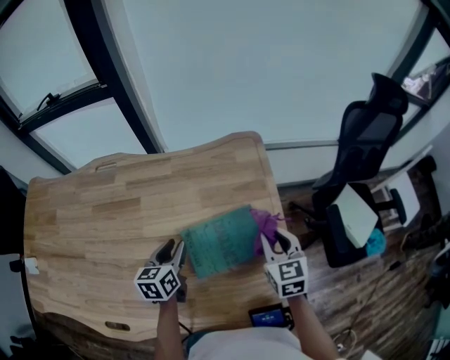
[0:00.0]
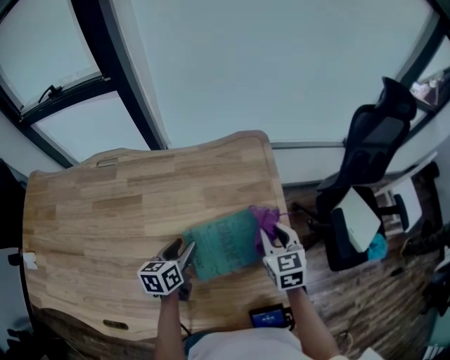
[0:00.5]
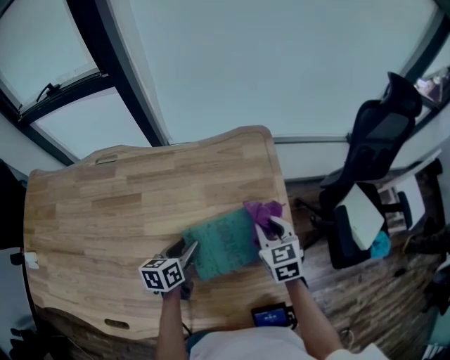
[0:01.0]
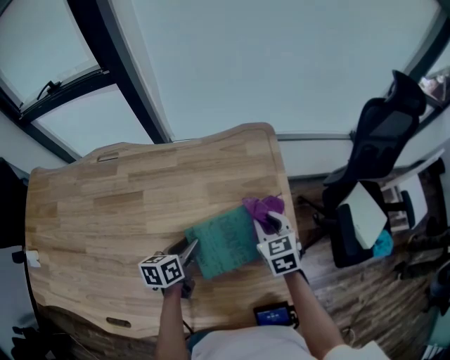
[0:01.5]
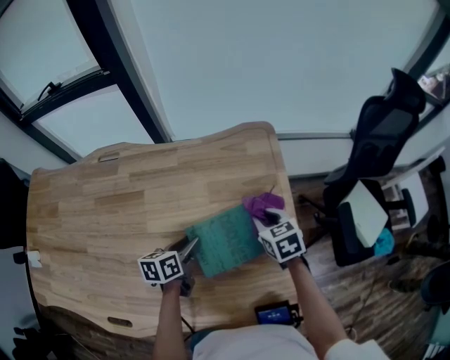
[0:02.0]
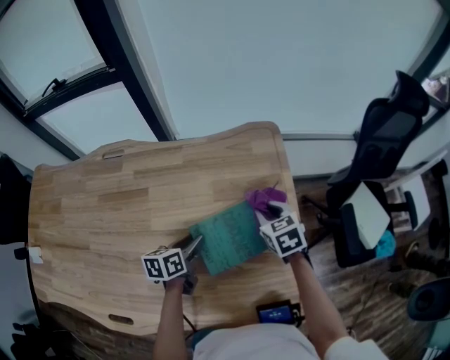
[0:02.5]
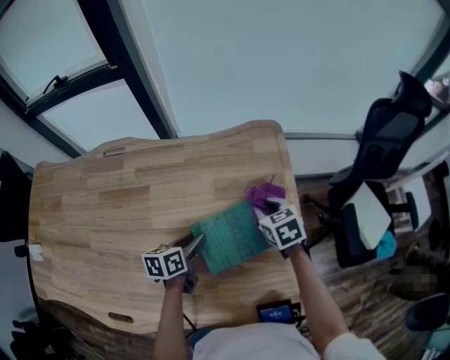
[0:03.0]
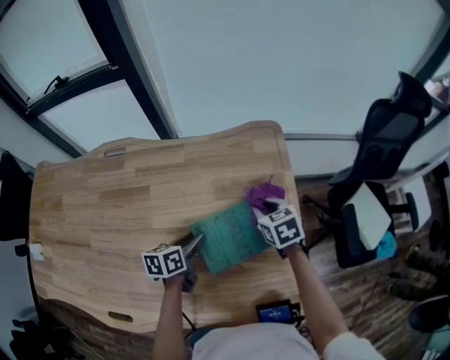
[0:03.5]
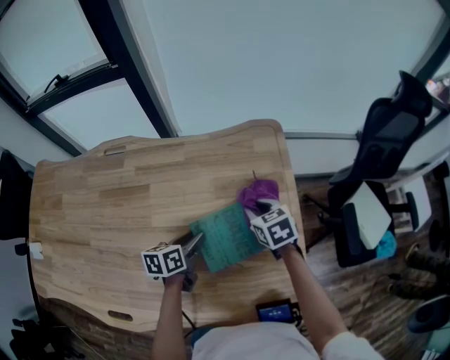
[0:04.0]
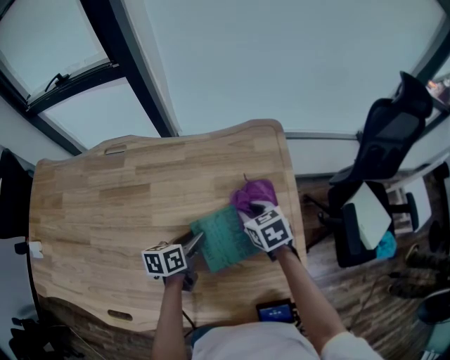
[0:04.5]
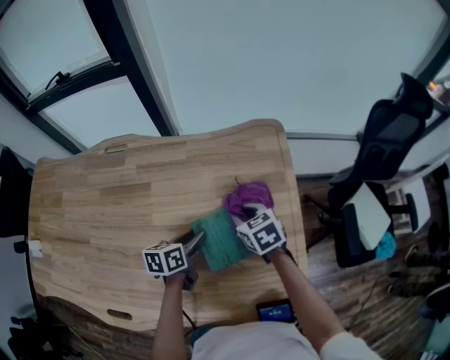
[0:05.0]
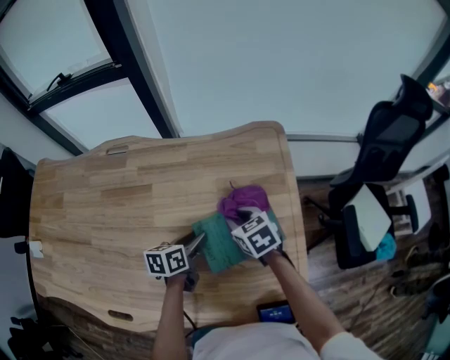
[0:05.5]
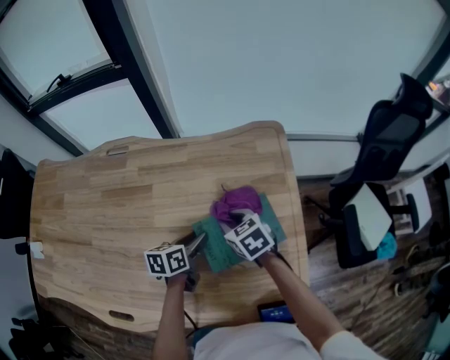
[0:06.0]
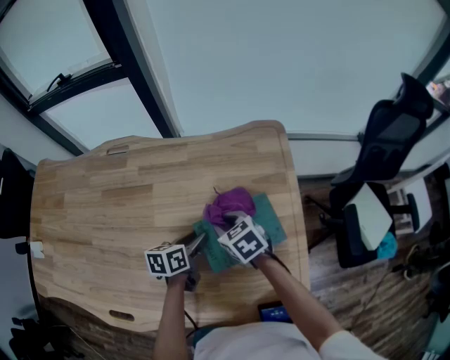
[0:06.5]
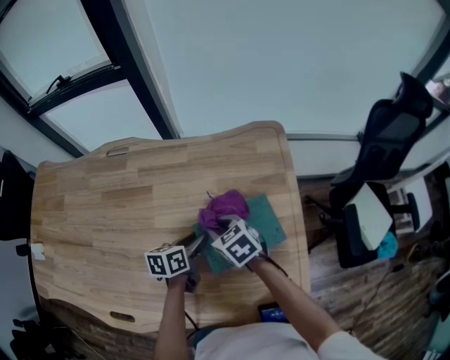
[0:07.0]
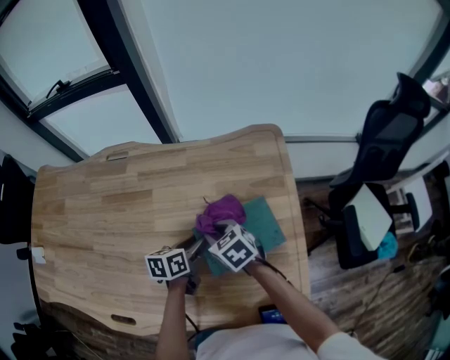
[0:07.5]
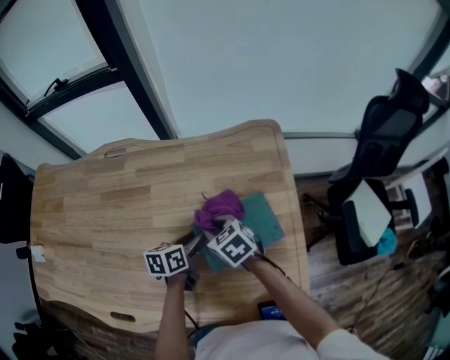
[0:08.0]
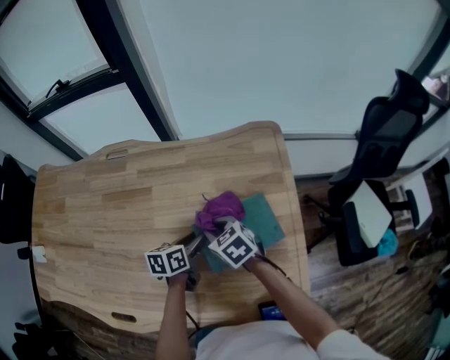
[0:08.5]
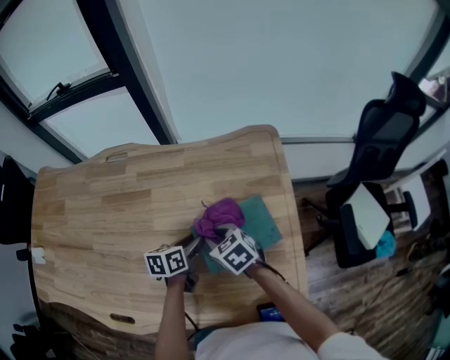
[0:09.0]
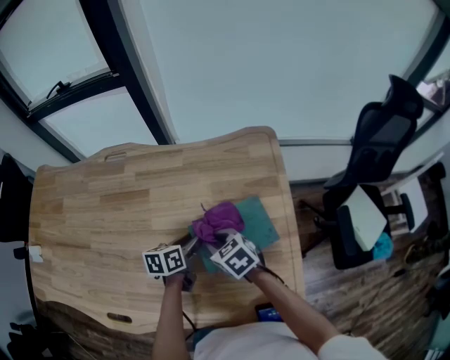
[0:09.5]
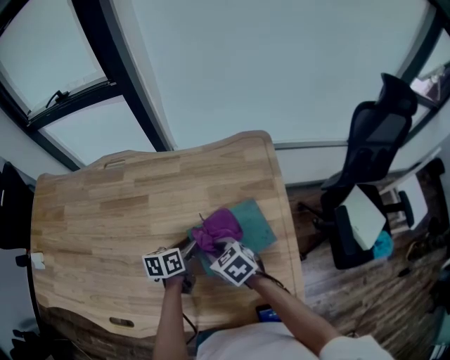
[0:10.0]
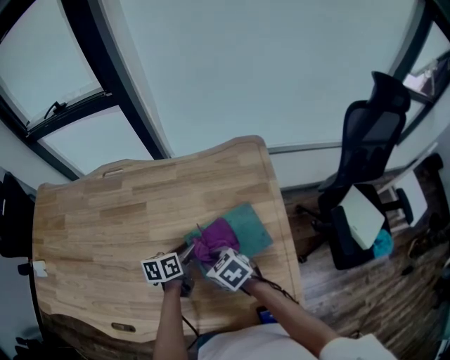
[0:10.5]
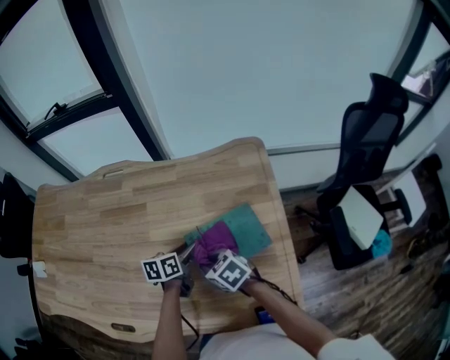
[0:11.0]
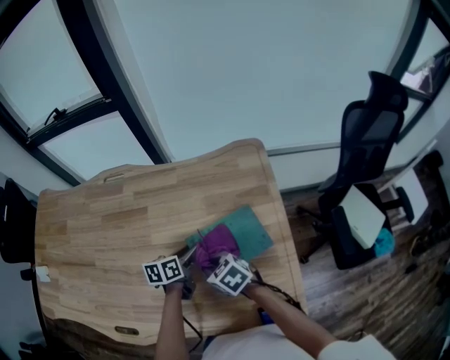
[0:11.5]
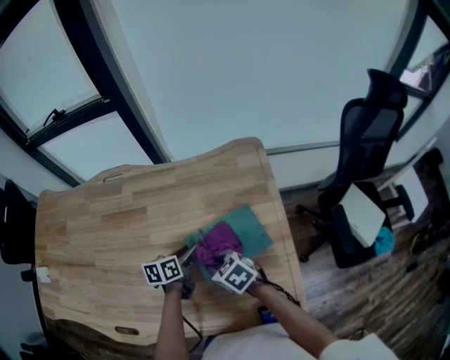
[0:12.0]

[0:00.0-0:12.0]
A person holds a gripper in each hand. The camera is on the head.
0:00.0 to 0:02.0: The left gripper shifts roughly 5 cm downward, and changes its angle by approximately 20 degrees, while the right gripper heads downward and forward, covering some 10 cm, and swivels about 20 degrees.
0:02.0 to 0:04.0: The grippers make only small movements.
0:04.0 to 0:06.0: The right gripper heads to the left, covering some 10 cm.
0:06.0 to 0:08.0: The right gripper ends up some 5 cm from where it was.
0:08.0 to 0:10.0: The right gripper is displaced backward by some 5 cm.
0:10.0 to 0:12.0: The grippers stay close to where they were, moving slightly.

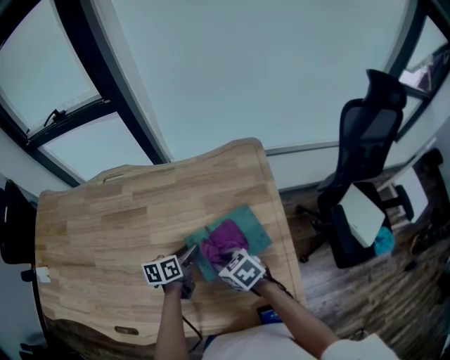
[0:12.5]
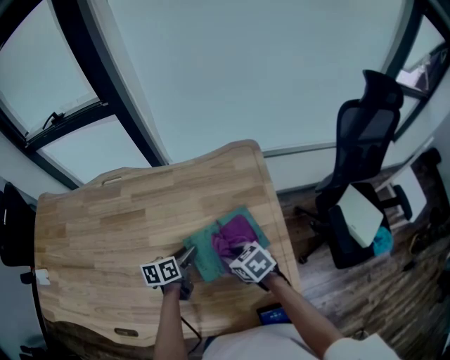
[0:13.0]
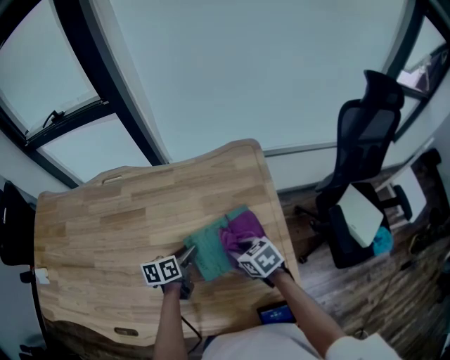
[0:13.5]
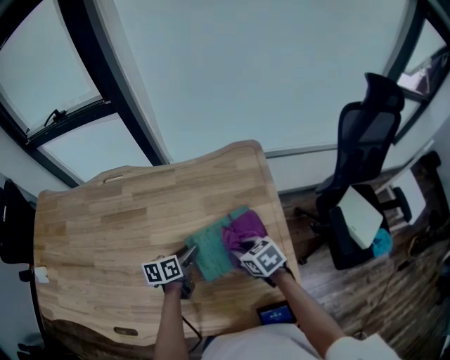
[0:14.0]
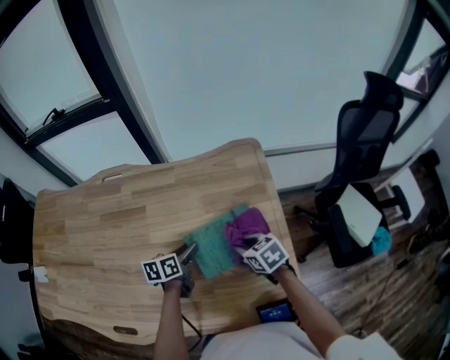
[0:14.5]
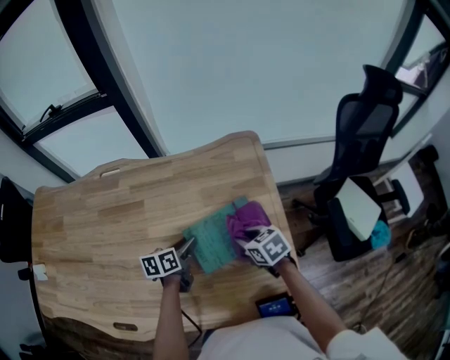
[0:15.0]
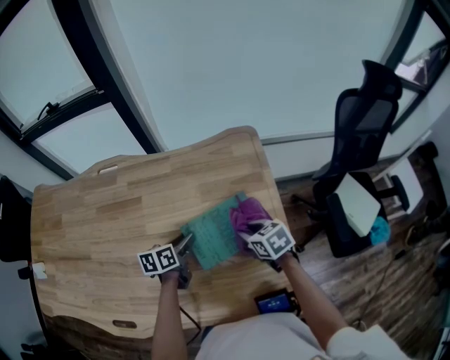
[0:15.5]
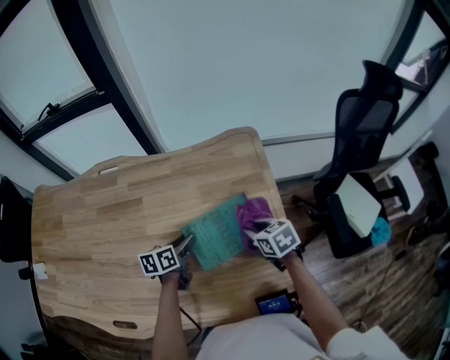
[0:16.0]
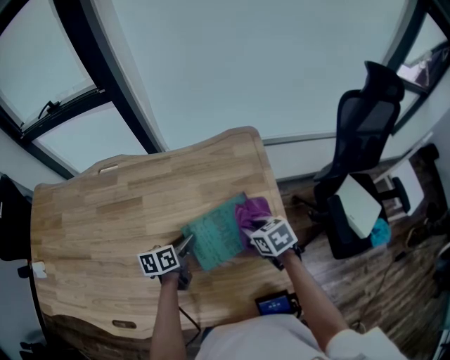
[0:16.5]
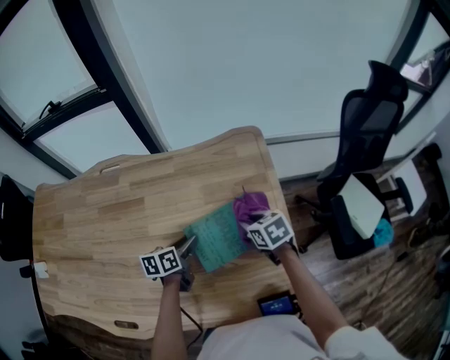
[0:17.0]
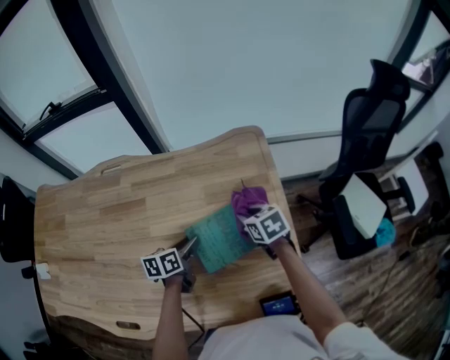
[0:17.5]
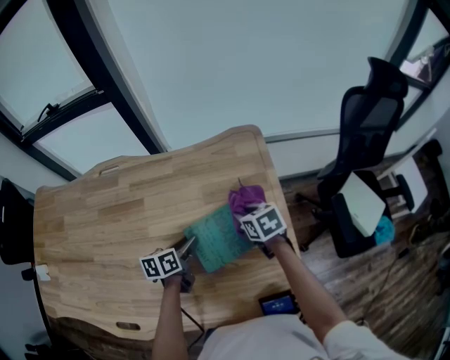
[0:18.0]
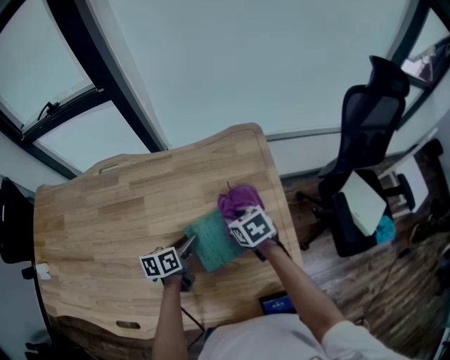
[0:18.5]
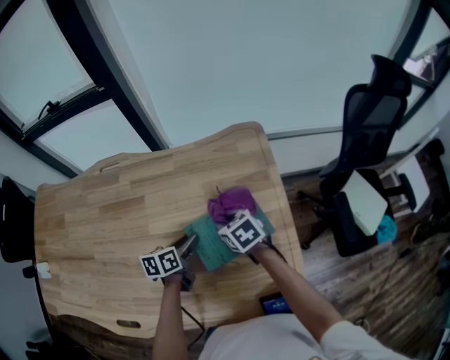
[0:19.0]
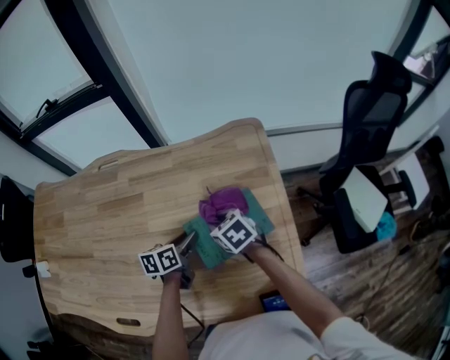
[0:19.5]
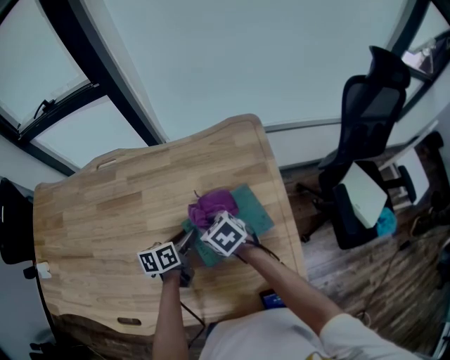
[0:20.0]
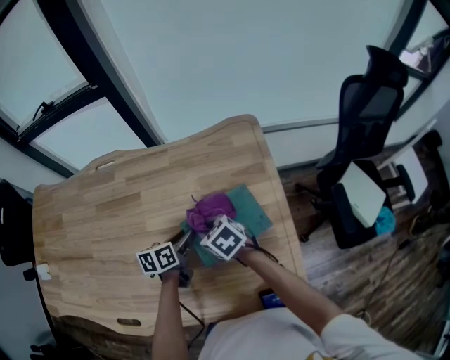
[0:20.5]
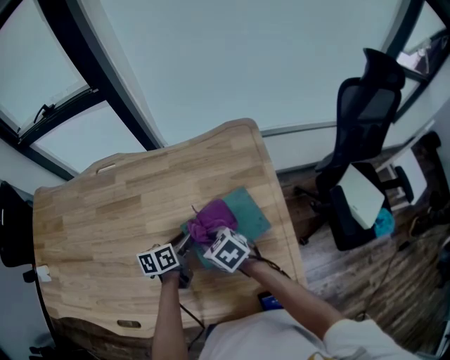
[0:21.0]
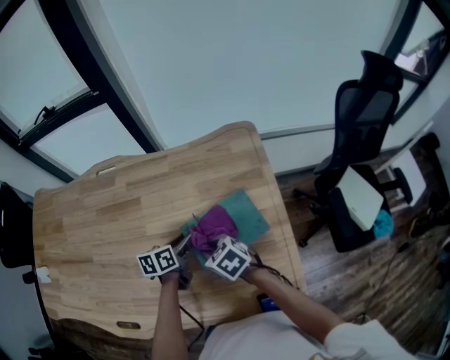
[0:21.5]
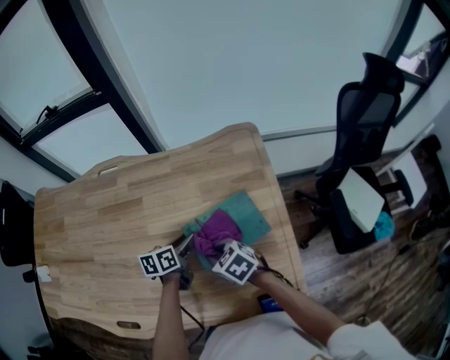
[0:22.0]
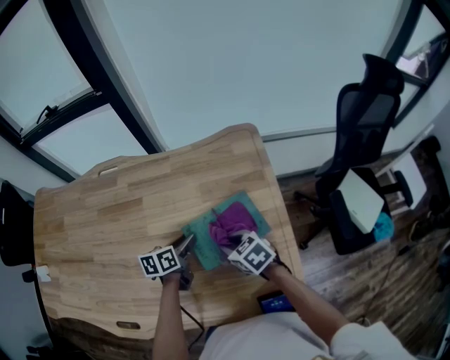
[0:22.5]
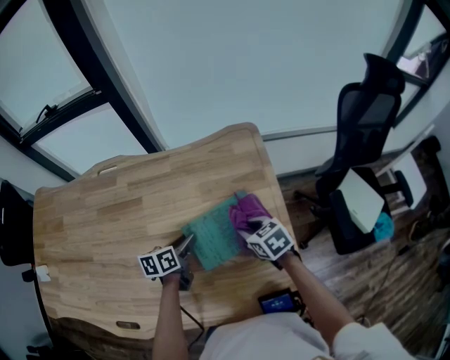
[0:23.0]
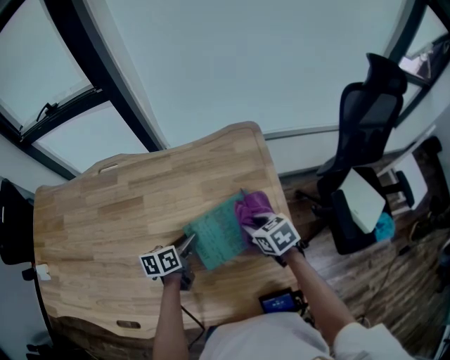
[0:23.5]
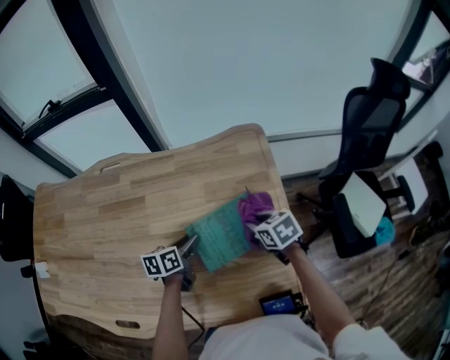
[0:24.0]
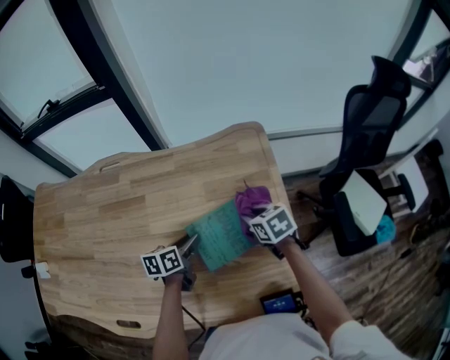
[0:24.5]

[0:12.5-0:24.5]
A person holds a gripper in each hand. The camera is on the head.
0:12.5 to 0:14.5: The right gripper goes roughly 10 cm to the right.
0:14.5 to 0:16.5: The grippers stay close to where they were, moving slightly.
0:16.5 to 0:18.5: The right gripper heads to the left, covering about 5 cm.
0:18.5 to 0:20.5: The right gripper moves to the left, approximately 10 cm.
0:20.5 to 0:22.5: The right gripper moves to the right and backward, about 10 cm.
0:22.5 to 0:24.5: The right gripper heads to the right and forward, covering some 15 cm.

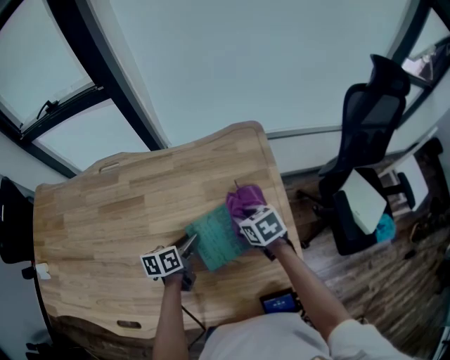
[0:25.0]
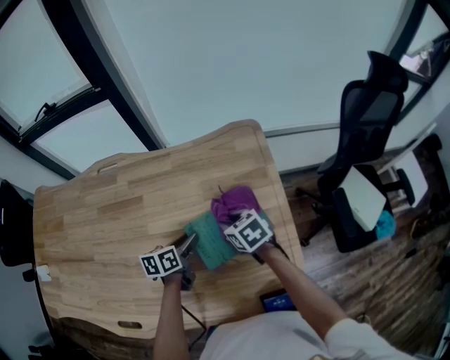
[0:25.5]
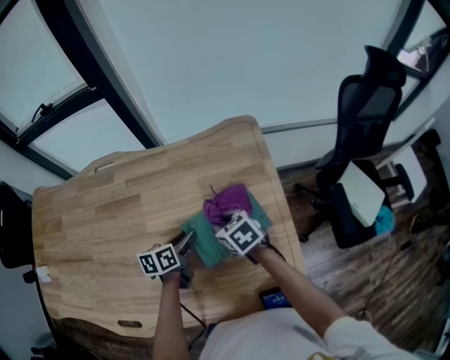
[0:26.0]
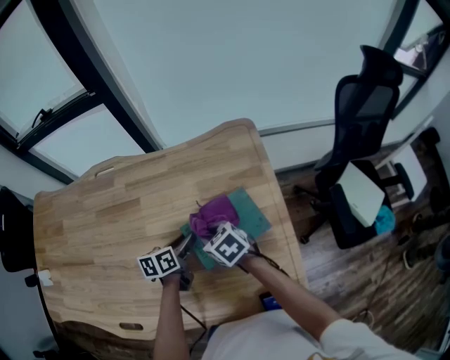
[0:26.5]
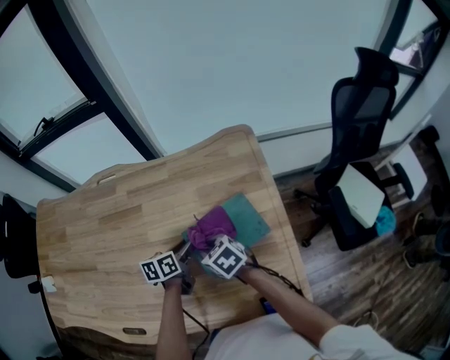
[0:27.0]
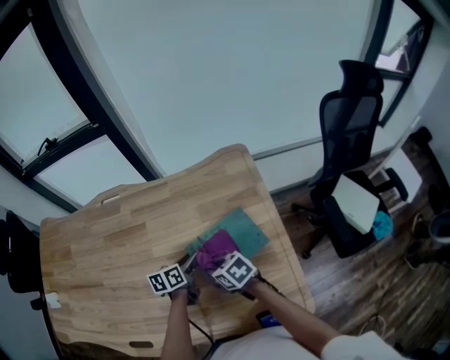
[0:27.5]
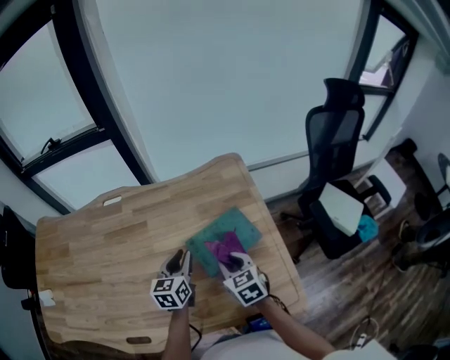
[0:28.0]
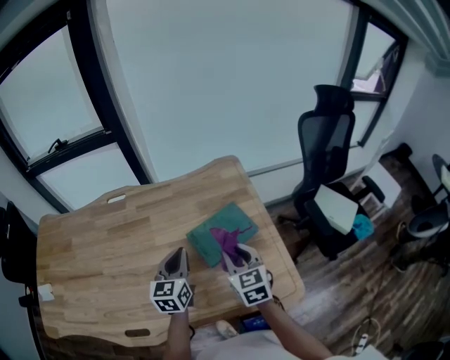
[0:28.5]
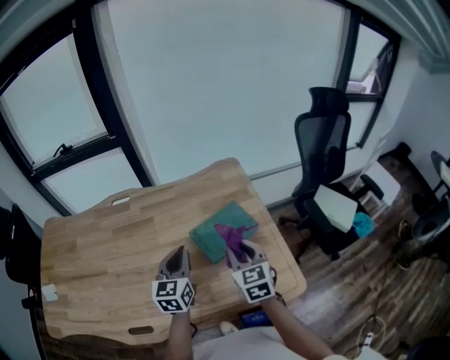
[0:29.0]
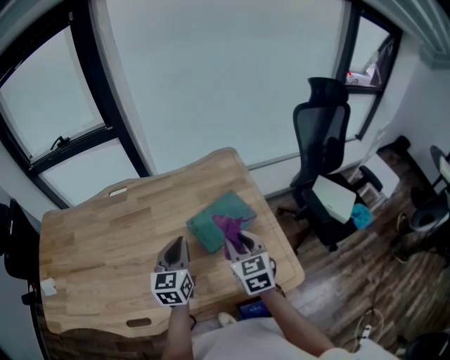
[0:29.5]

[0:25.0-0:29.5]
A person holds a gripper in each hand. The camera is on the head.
0:25.0 to 0:27.0: The right gripper goes roughly 15 cm to the left and backward.
0:27.0 to 0:29.5: The left gripper moves upward and backward, some 20 cm, swivels approximately 50 degrees, and closes. Meanwhile the right gripper travels upward, to the right and backward by some 20 cm, and swivels about 50 degrees.
